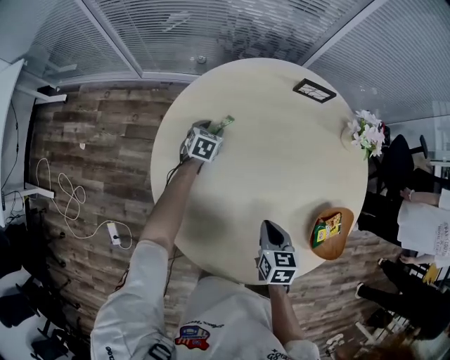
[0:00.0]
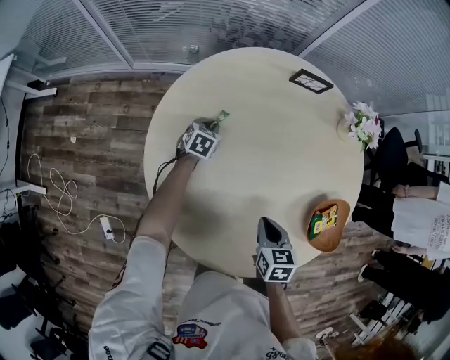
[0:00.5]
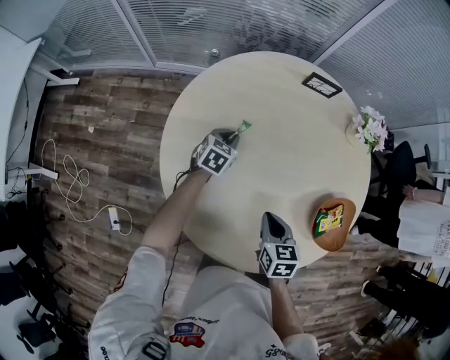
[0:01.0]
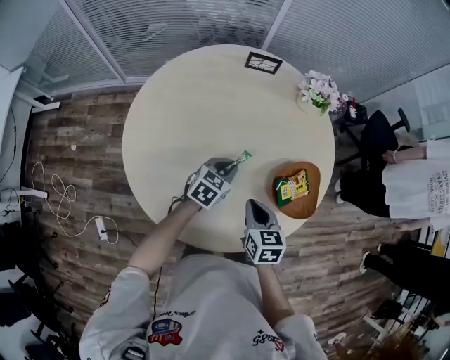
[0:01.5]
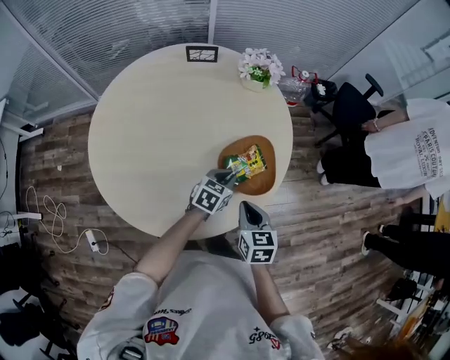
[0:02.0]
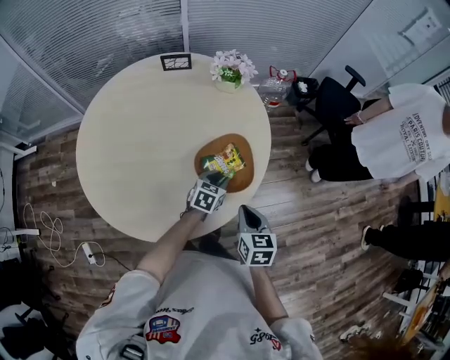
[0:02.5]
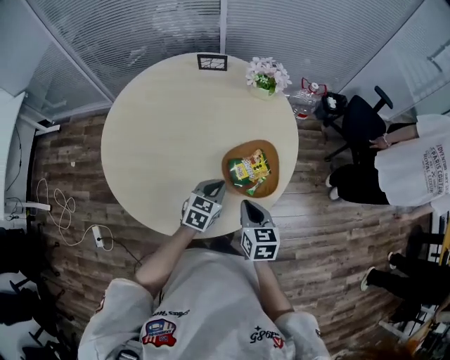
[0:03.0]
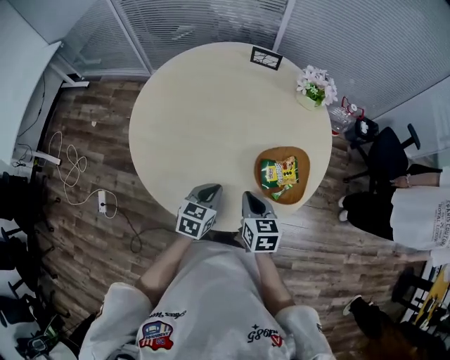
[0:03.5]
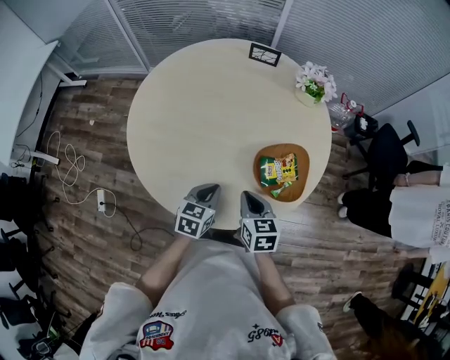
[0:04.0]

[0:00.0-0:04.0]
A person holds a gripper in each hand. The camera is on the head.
0:00.0 to 0:02.0: The right gripper travels to the right and backward by about 35 cm. Meanwhile the left gripper moves to the right and backward, roughly 60 cm, swivels approximately 30 degrees, and closes its fingers.
0:02.0 to 0:04.0: The right gripper changes place by about 10 cm, and turns by some 20 degrees, while the left gripper shifts by approximately 20 cm, and changes its angle by roughly 30 degrees.

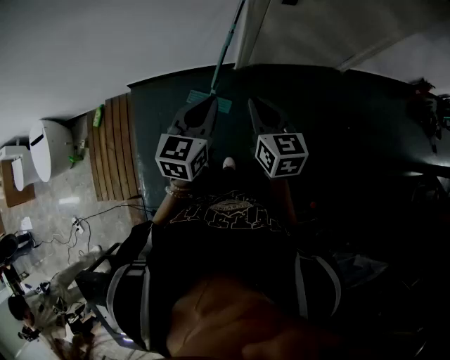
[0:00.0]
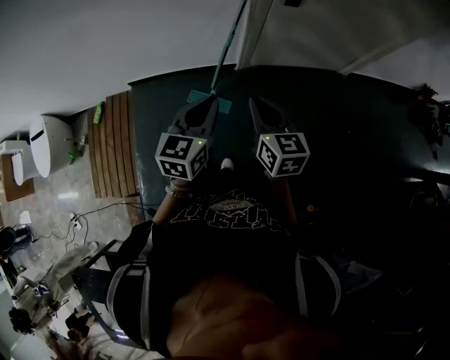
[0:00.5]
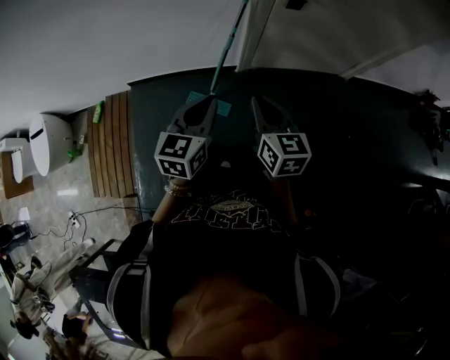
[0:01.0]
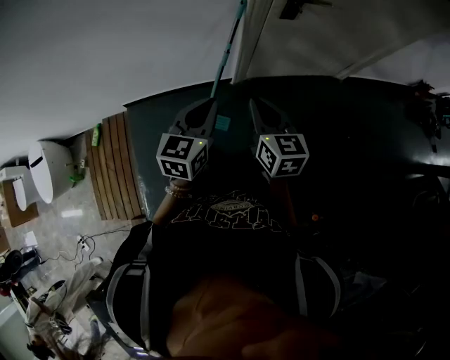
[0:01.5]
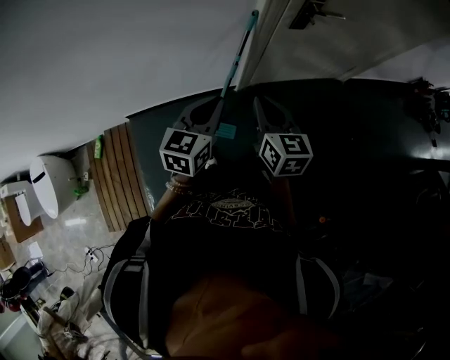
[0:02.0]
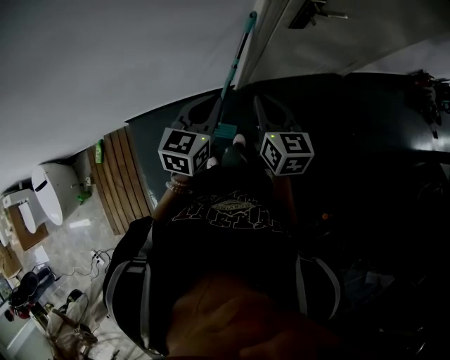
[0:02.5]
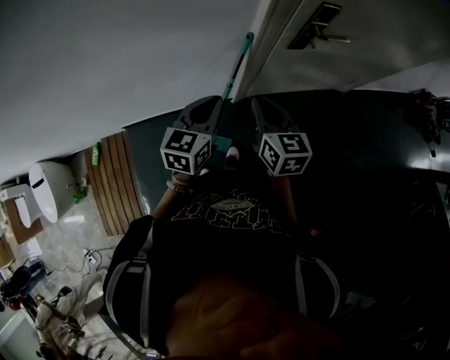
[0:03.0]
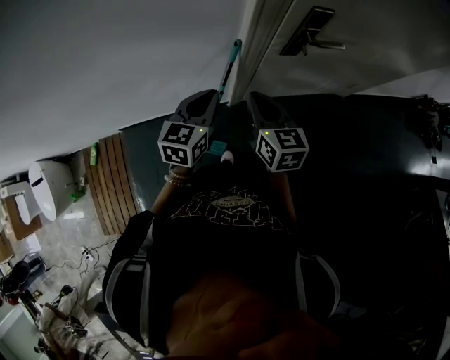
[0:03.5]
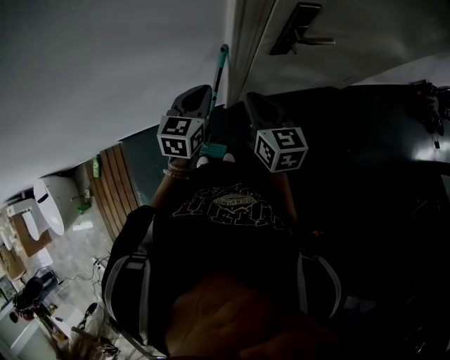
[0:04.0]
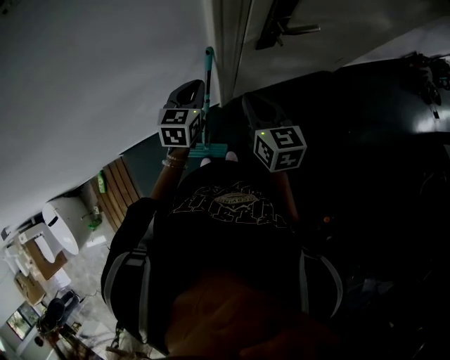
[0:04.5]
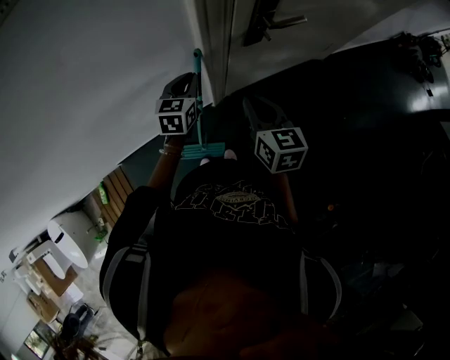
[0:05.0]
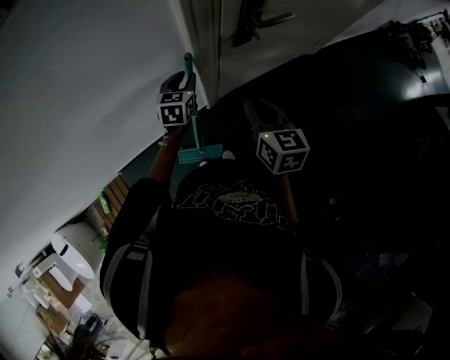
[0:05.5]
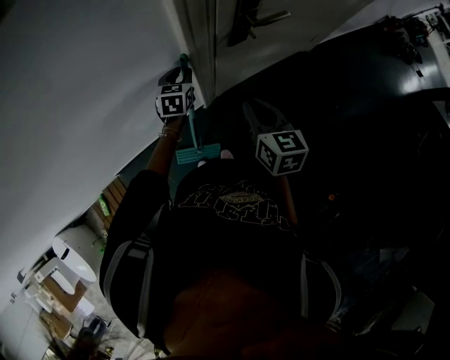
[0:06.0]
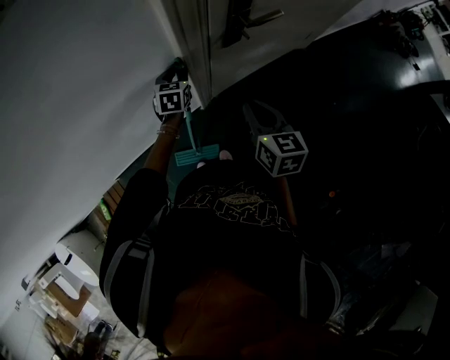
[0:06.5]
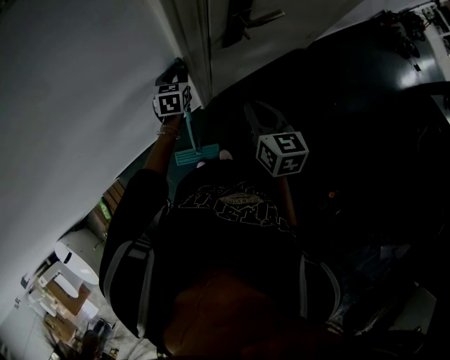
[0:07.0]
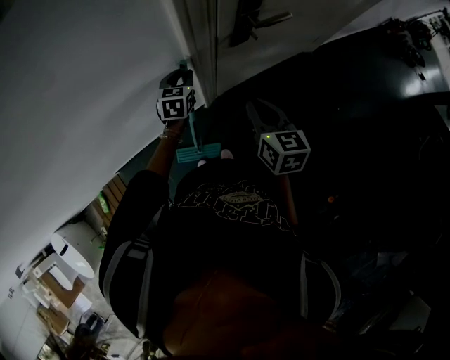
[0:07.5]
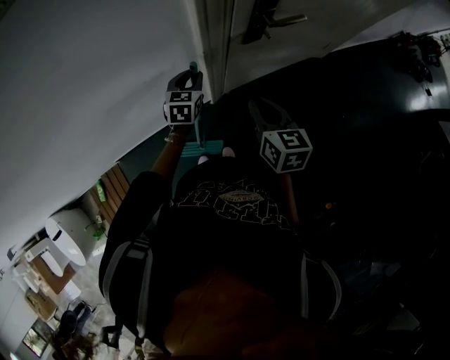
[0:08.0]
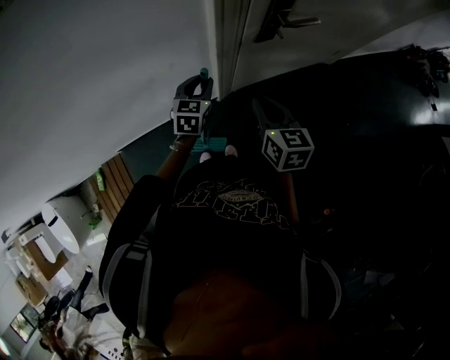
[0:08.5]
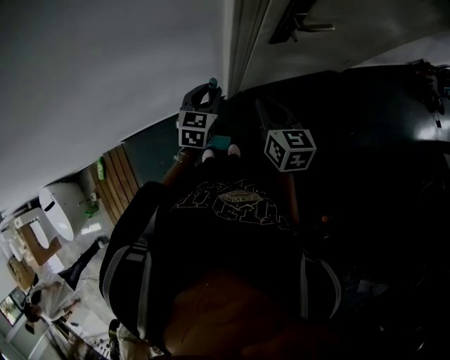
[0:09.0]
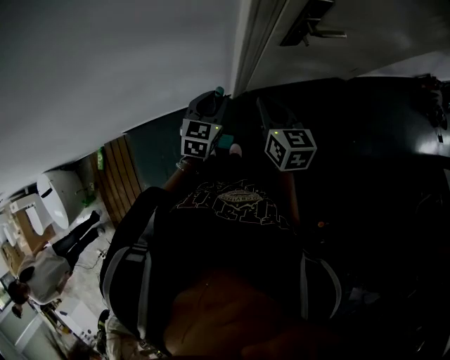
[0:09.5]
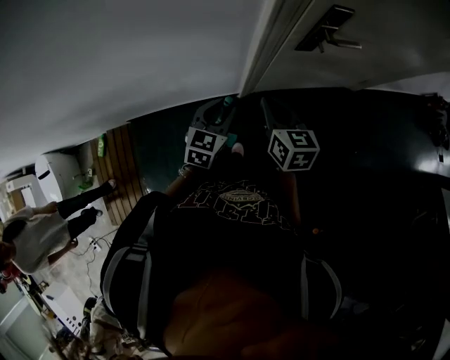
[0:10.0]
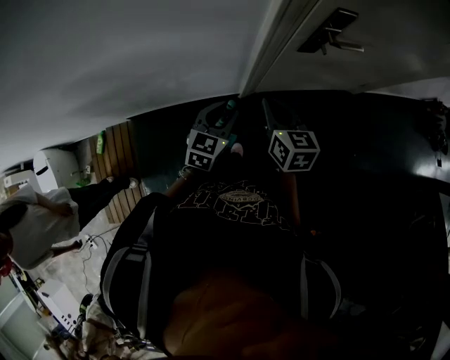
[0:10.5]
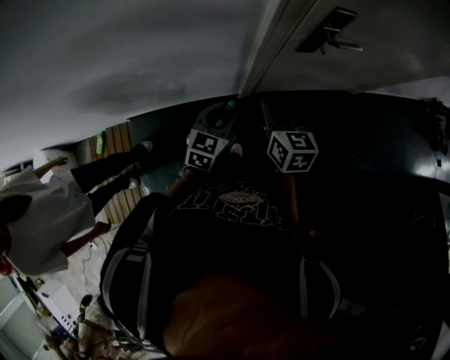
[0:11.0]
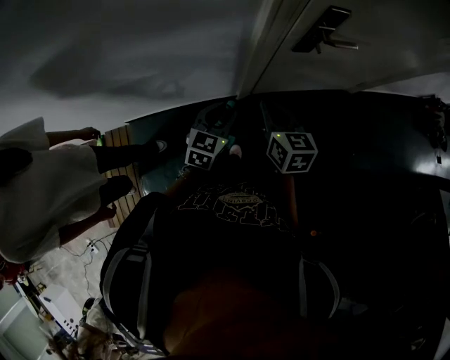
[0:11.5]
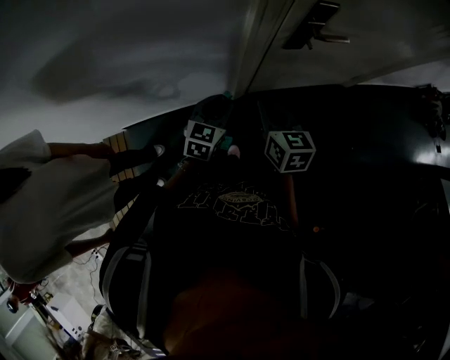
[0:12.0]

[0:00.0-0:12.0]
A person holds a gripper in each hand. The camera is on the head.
0:00.0 to 0:02.0: Both grippers travel together forward, some 20 cm.
0:02.0 to 0:04.0: Both grippers travel together forward, approximately 25 cm.
0:04.0 to 0:06.0: The right gripper moves to the right, roughly 5 cm. Meanwhile the left gripper is displaced forward and downward by approximately 20 cm, and opens its fingers.
0:06.0 to 0:08.0: There are only small adjustments of the grippers.
0:08.0 to 0:10.0: The right gripper shifts about 10 cm to the left. The left gripper is displaced backward by approximately 15 cm.
0:10.0 to 0:12.0: The grippers stay close to where they were, moving slightly.

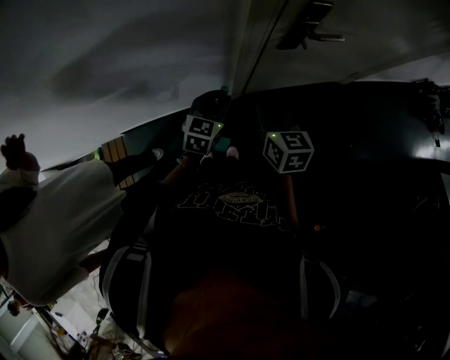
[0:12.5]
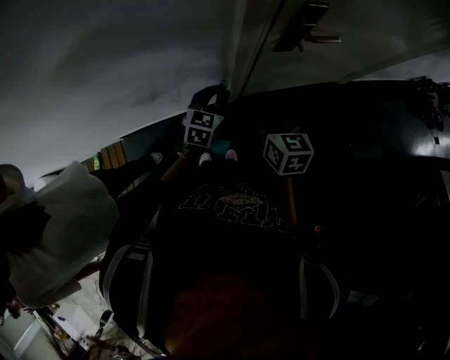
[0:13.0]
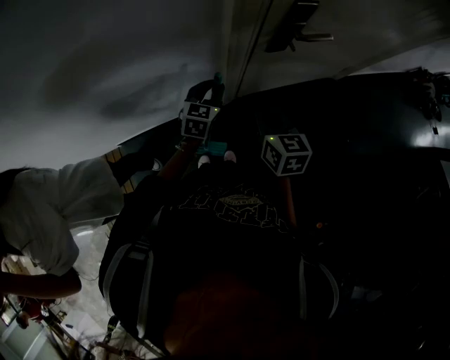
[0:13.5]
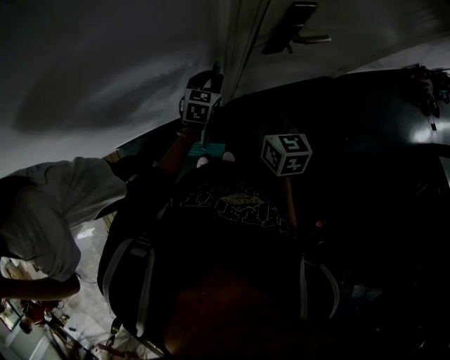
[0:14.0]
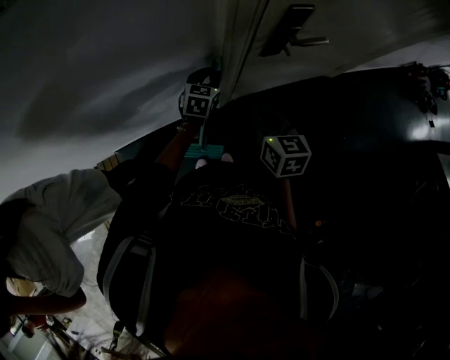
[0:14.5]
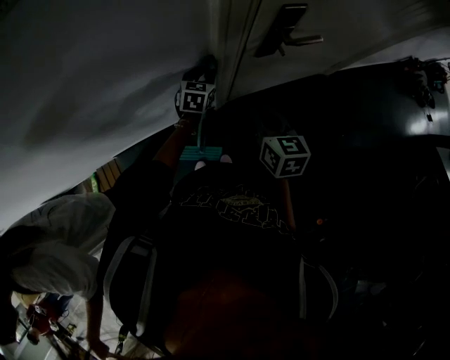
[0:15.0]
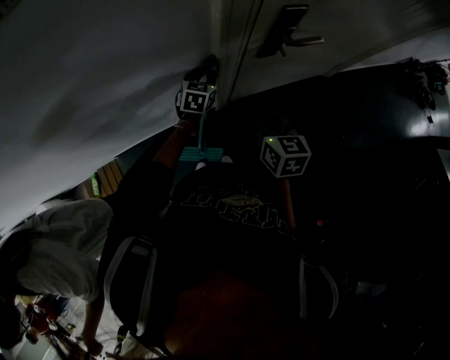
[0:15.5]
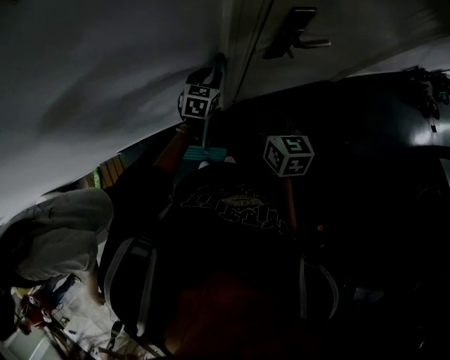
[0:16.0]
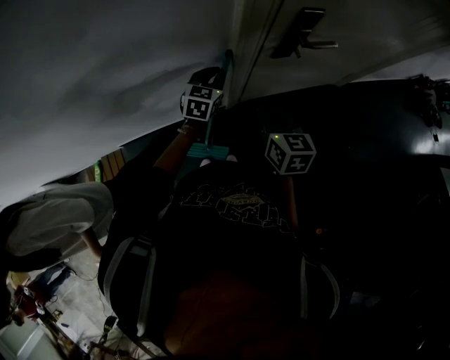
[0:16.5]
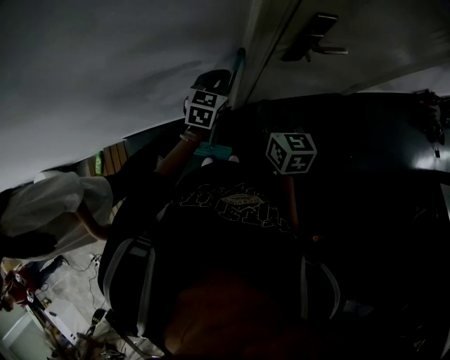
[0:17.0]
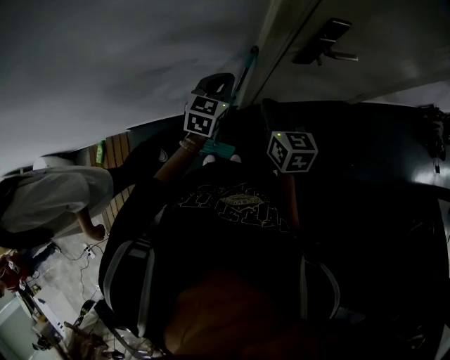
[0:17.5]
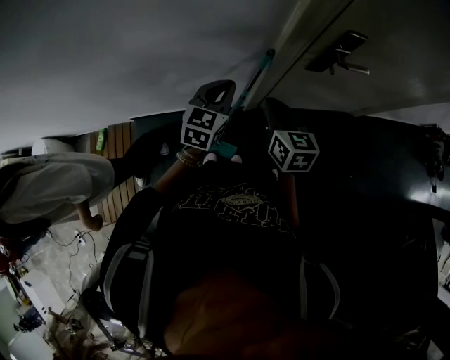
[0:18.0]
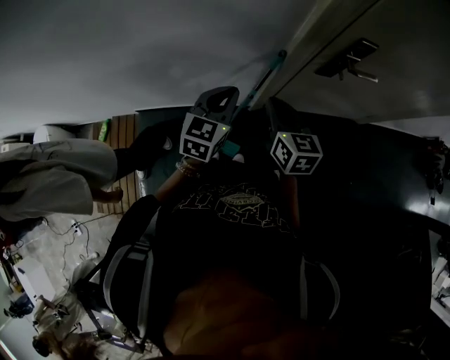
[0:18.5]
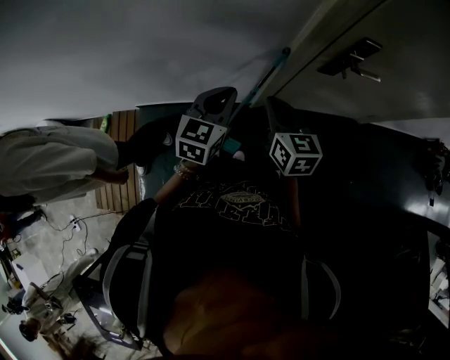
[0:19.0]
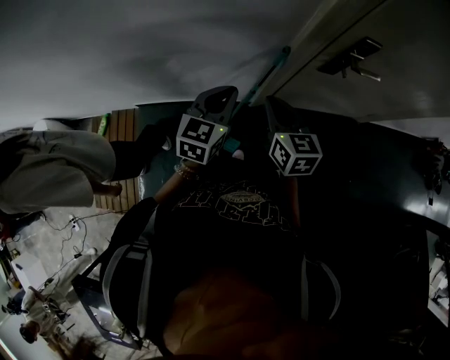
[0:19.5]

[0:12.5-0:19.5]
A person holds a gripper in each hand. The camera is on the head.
0:12.5 to 0:14.5: The right gripper ends up about 5 cm from where it was. The left gripper travels forward by roughly 15 cm.
0:14.5 to 0:16.0: There are only small adjustments of the grippers.
0:16.0 to 0:17.5: The left gripper heads backward and upward, covering some 15 cm, and closes its fingers, while the right gripper moves to the left, about 5 cm.
0:17.5 to 0:19.5: The right gripper goes roughly 5 cm to the left, while the left gripper shifts about 15 cm backward, to the left and upward.

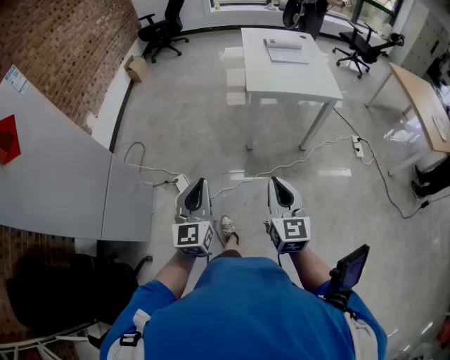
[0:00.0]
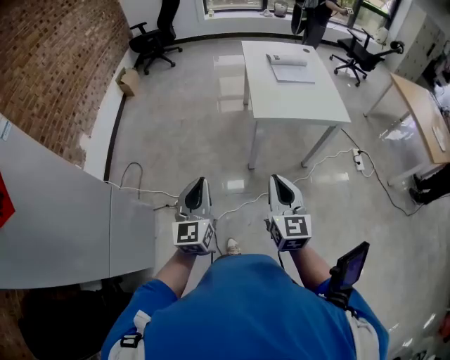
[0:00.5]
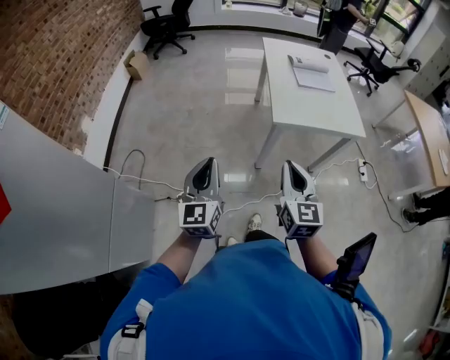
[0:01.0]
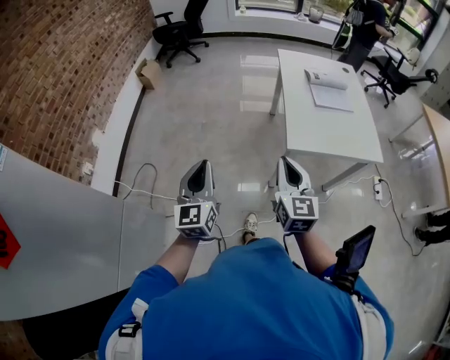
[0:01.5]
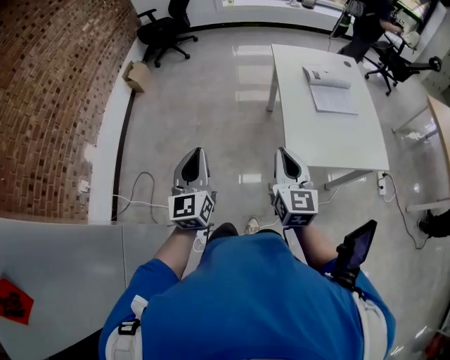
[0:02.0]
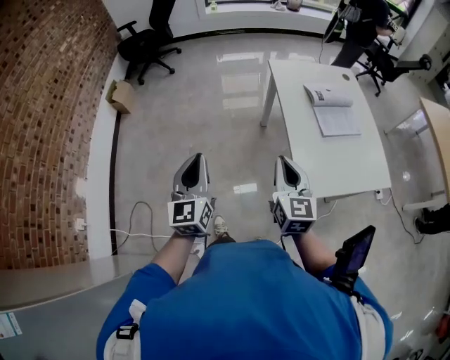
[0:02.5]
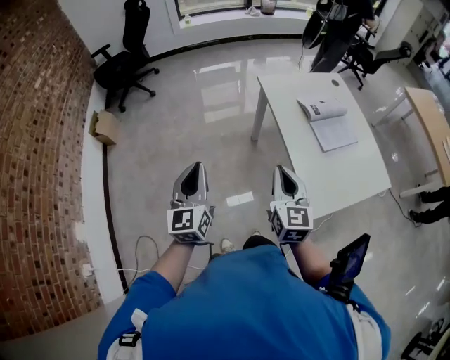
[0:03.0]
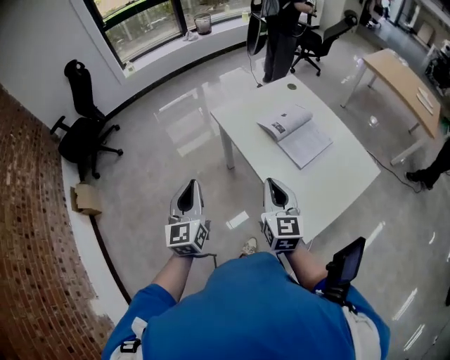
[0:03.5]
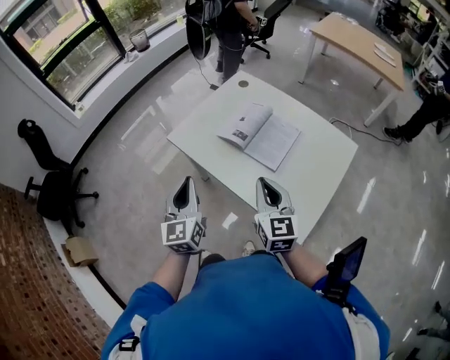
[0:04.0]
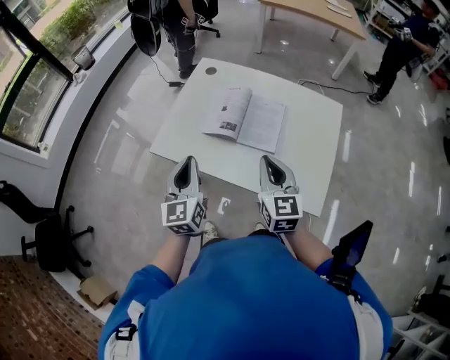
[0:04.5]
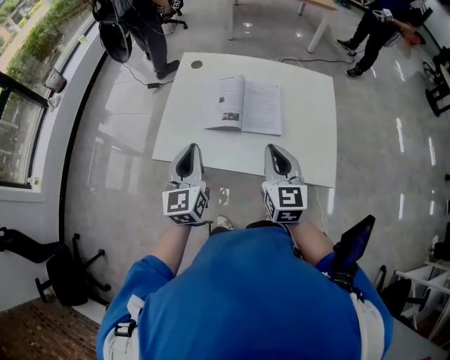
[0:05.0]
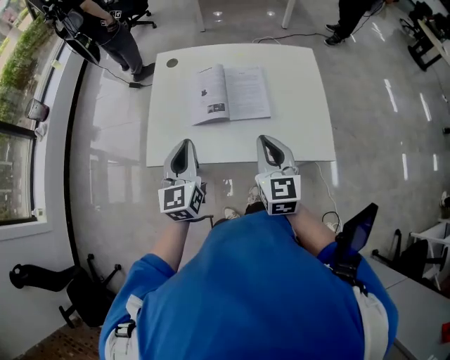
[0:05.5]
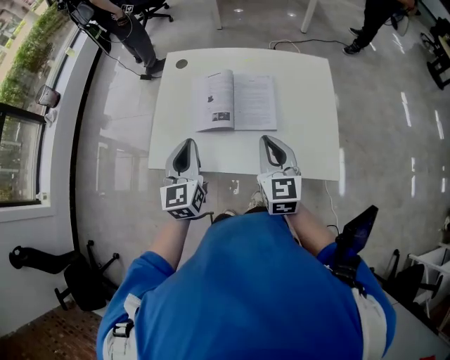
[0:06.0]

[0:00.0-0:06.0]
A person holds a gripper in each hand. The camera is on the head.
0:00.0 to 0:02.0: Both grippers are carried forward, roughly 60 cm.
0:02.0 to 0:04.0: The right gripper shifts by some 35 cm, and changes its angle by some 50 degrees. Meanwhile the left gripper moves about 50 cm, and changes its angle by approximately 50 degrees.
0:04.0 to 0:06.0: The right gripper moves some 10 cm, and rotates approximately 30 degrees. Meanwhile the left gripper ends up some 20 cm from where it was, and changes its angle by some 40 degrees.
